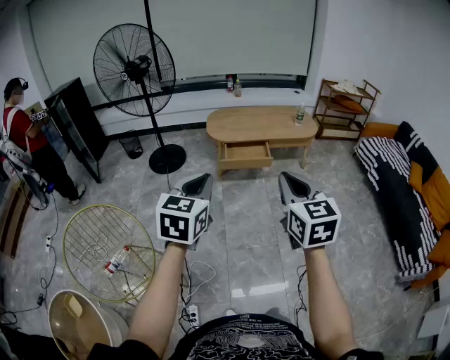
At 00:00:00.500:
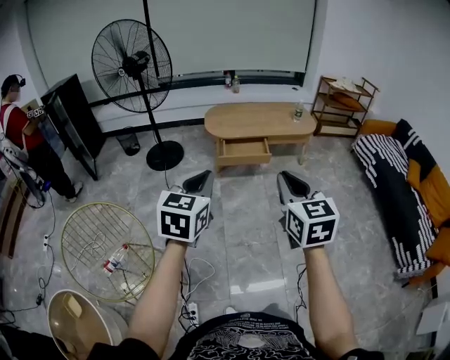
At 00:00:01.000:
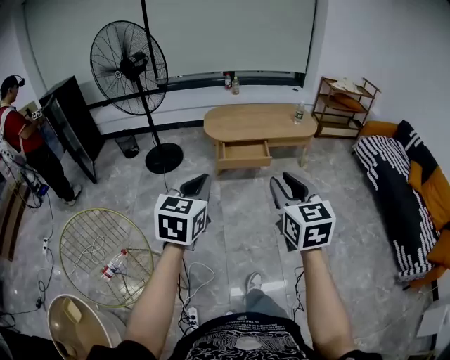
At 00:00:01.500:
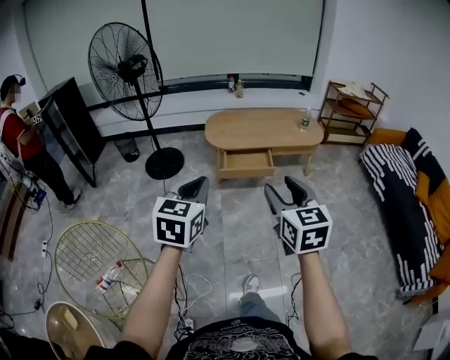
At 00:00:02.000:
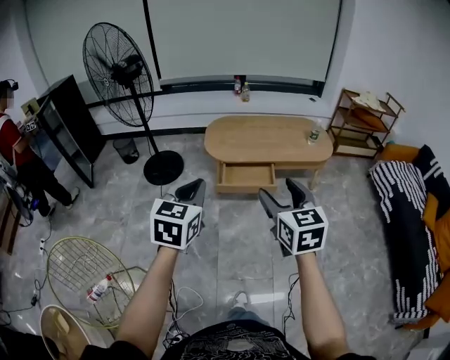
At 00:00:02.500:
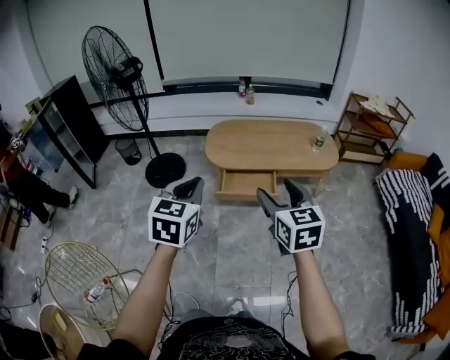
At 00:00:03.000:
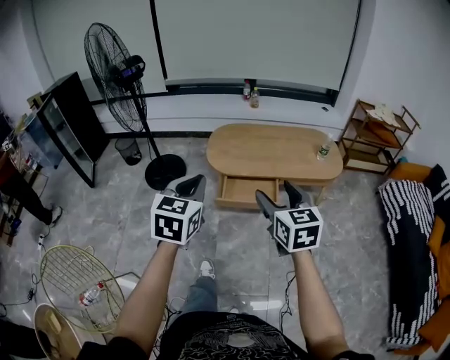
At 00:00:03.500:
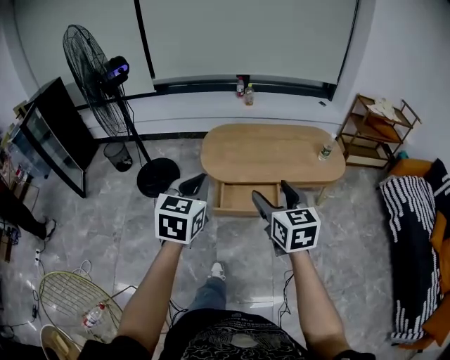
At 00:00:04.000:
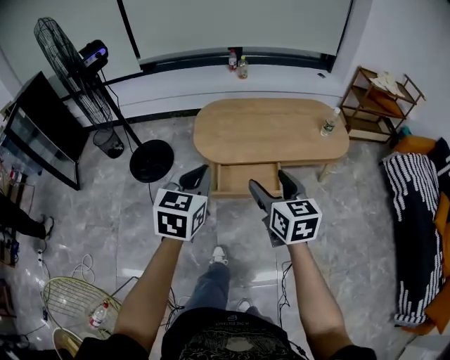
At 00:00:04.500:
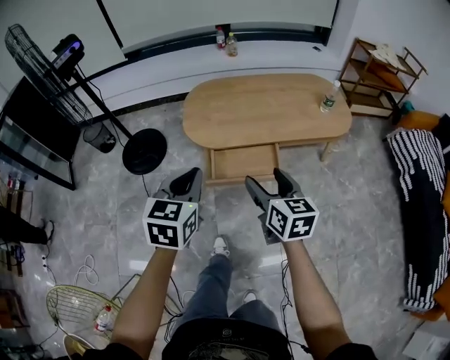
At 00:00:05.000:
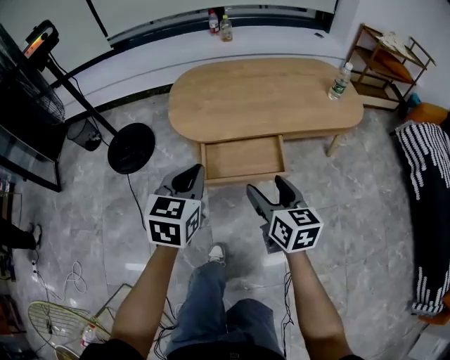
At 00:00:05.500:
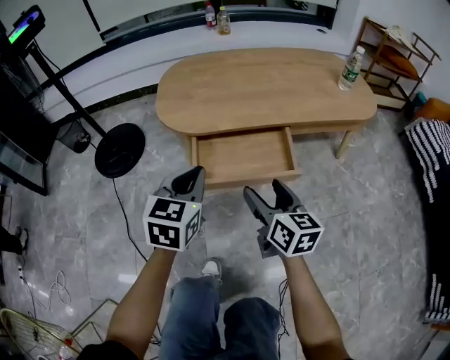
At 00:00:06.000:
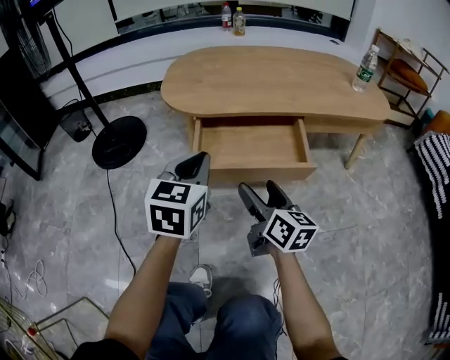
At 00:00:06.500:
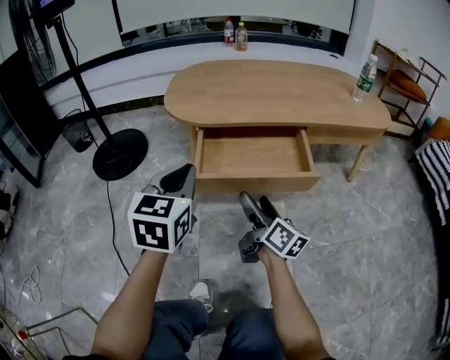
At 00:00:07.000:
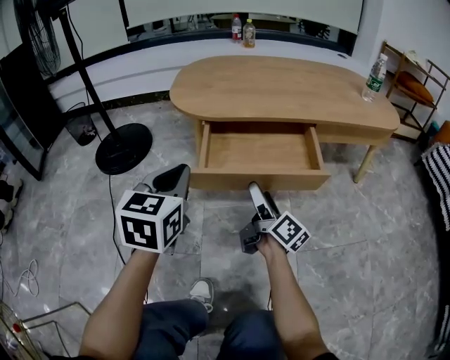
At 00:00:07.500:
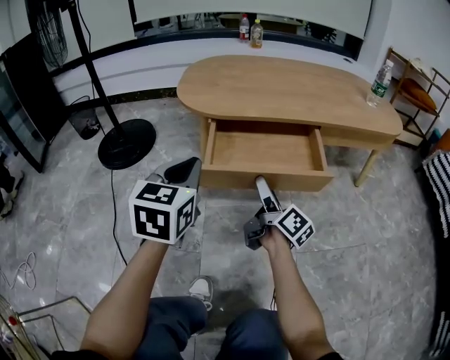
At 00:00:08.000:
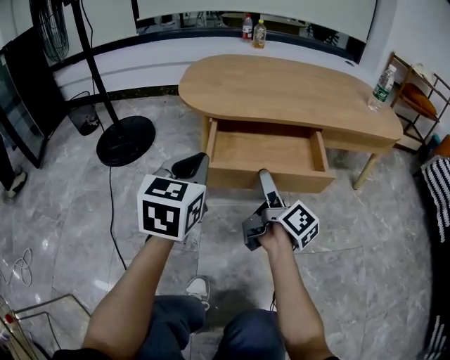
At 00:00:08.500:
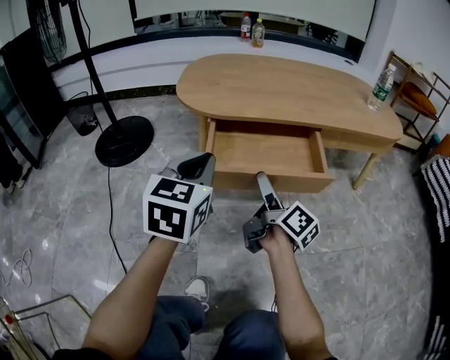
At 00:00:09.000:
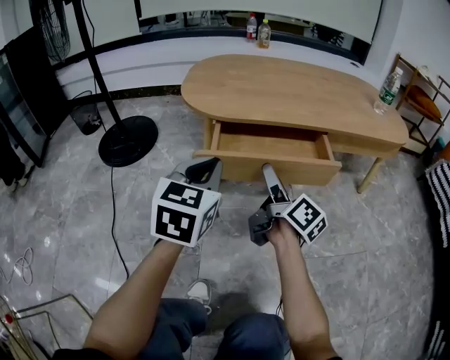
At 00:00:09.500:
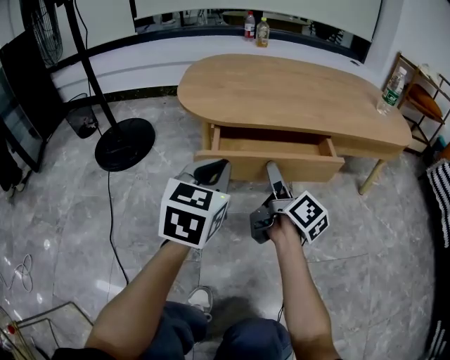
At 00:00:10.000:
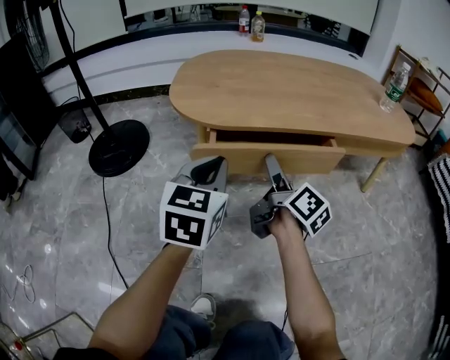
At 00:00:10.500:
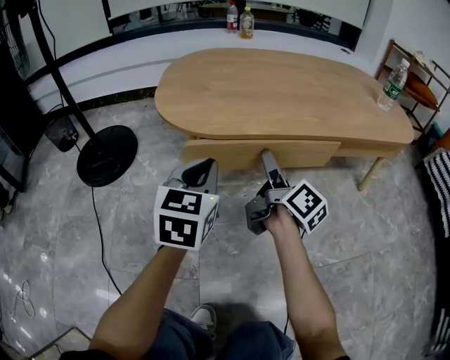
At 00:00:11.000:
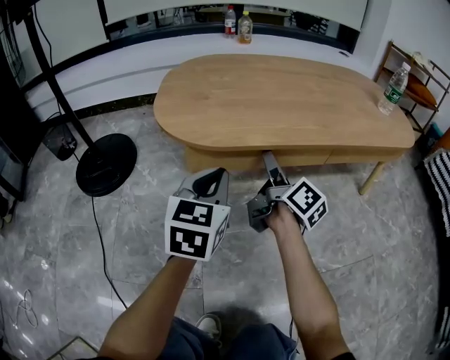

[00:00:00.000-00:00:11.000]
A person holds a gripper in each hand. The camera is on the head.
00:00:00.000 to 00:00:02.000: The grippers both shift forward by roughly 25 cm. The right gripper opens up.
00:00:02.000 to 00:00:03.500: The two grippers go approximately 25 cm forward.
00:00:03.500 to 00:00:05.500: The two grippers go some 40 cm downward. The right gripper swivels about 20 degrees.
00:00:05.500 to 00:00:07.500: The right gripper travels downward and forward by about 20 cm, and turns by some 40 degrees, while the left gripper moves downward and to the left, some 10 cm.
00:00:07.500 to 00:00:09.000: The right gripper moves upward, some 5 cm.
00:00:09.000 to 00:00:11.000: The left gripper heads forward and downward, covering about 15 cm. The right gripper travels forward by approximately 15 cm.

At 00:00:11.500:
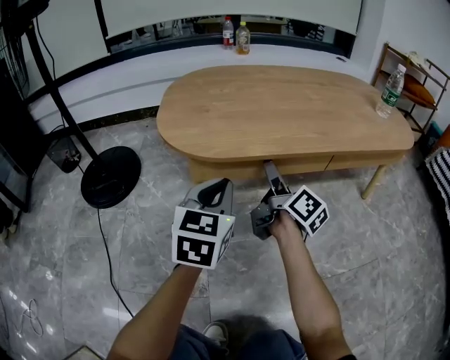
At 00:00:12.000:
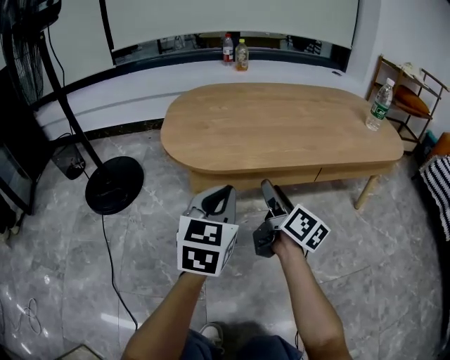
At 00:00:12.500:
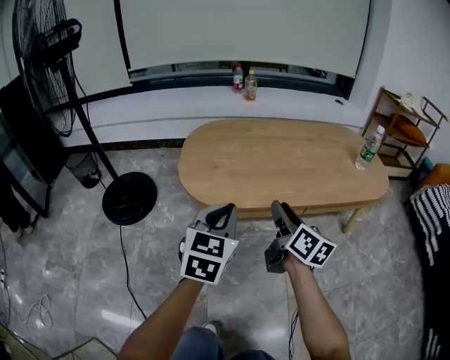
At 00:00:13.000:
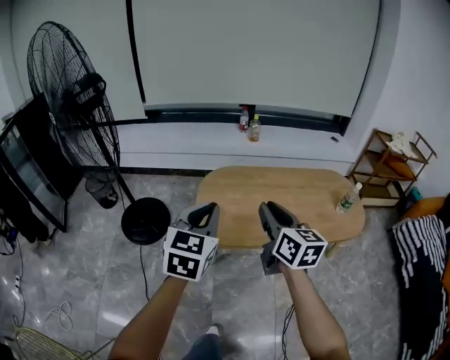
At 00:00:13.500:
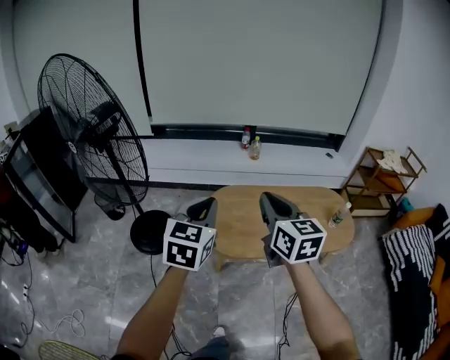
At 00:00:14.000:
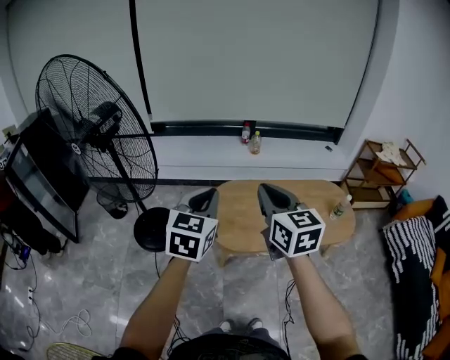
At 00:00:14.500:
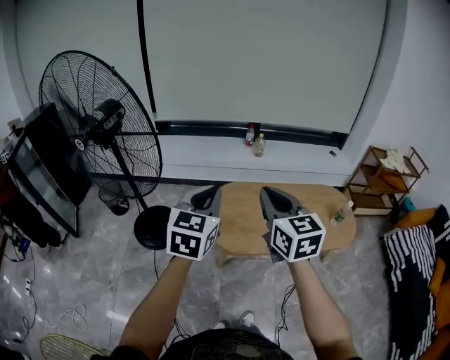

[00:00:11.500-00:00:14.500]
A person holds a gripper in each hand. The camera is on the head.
00:00:11.500 to 00:00:13.000: The grippers both shift upward by approximately 50 cm. The right gripper rotates some 40 degrees, and closes its fingers.
00:00:13.000 to 00:00:14.500: The right gripper is displaced upward and to the left by about 20 cm. The left gripper travels upward by some 15 cm.

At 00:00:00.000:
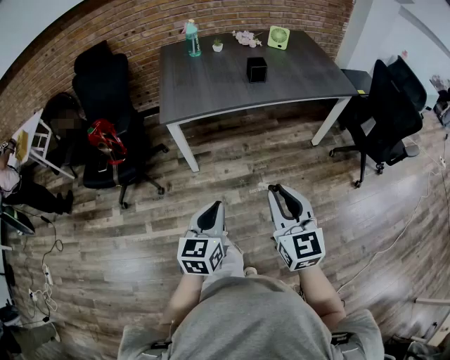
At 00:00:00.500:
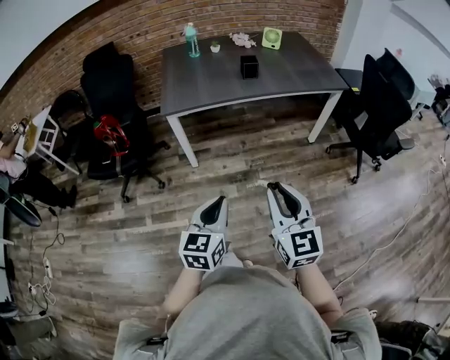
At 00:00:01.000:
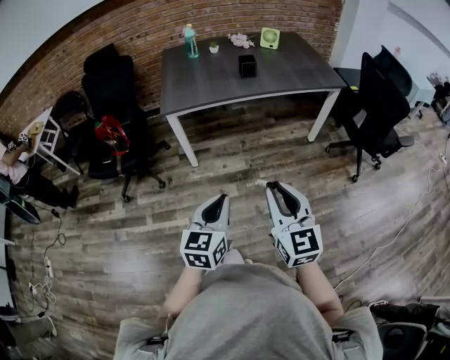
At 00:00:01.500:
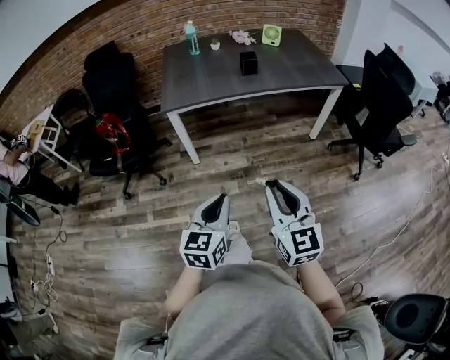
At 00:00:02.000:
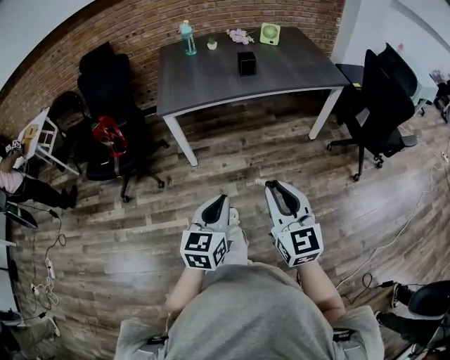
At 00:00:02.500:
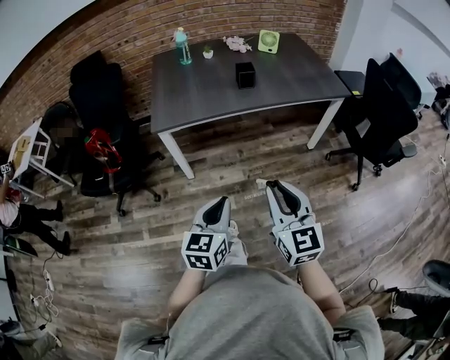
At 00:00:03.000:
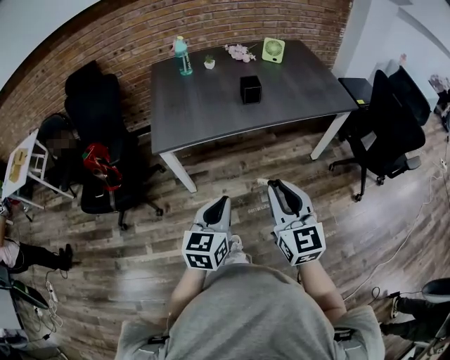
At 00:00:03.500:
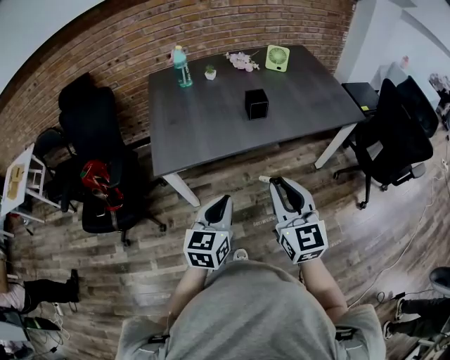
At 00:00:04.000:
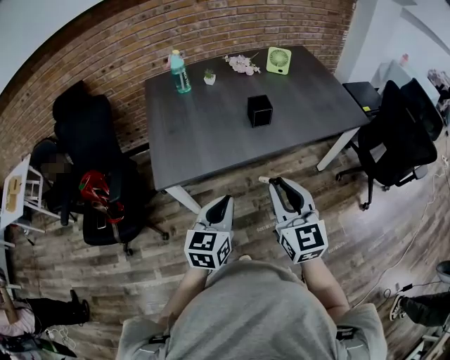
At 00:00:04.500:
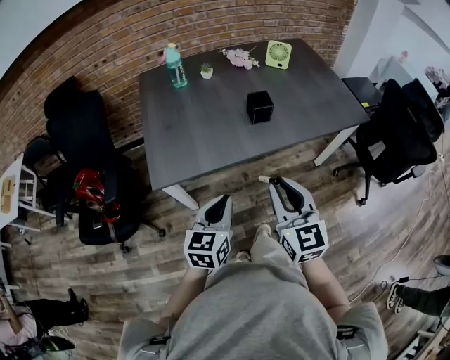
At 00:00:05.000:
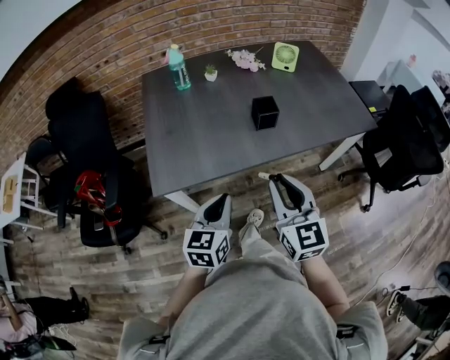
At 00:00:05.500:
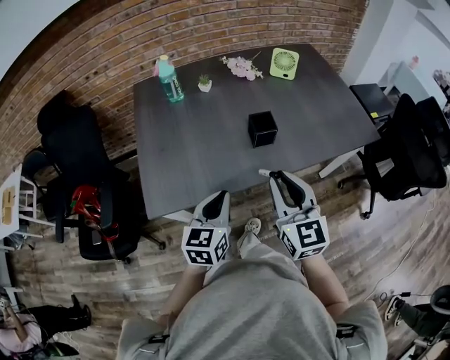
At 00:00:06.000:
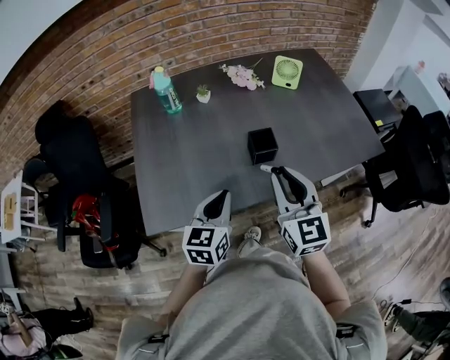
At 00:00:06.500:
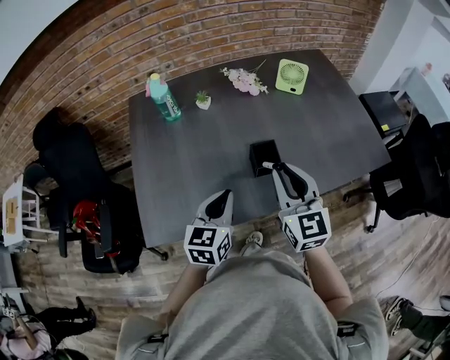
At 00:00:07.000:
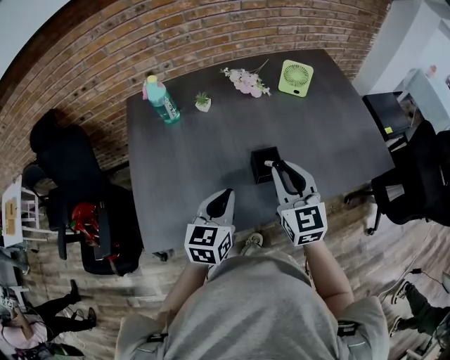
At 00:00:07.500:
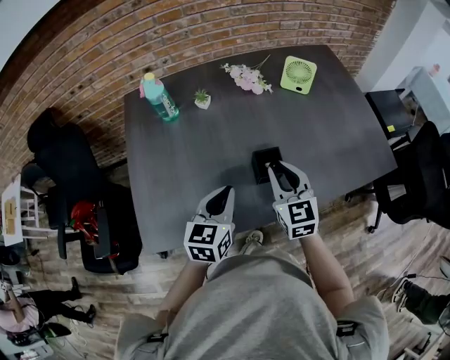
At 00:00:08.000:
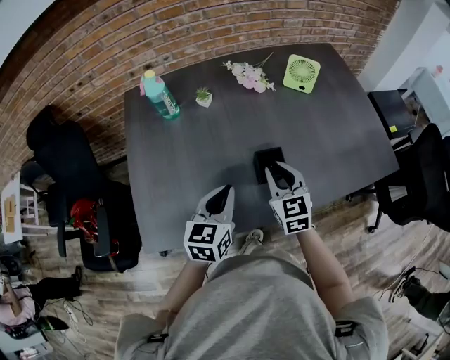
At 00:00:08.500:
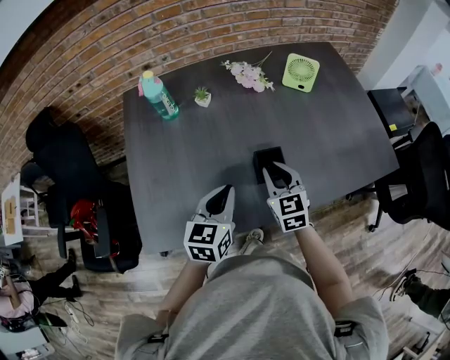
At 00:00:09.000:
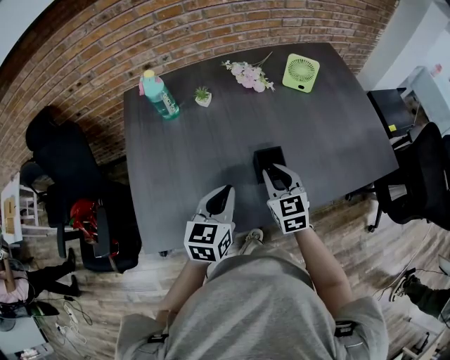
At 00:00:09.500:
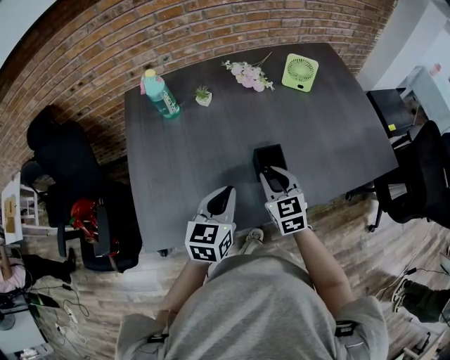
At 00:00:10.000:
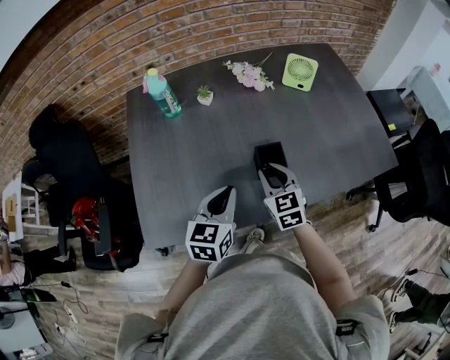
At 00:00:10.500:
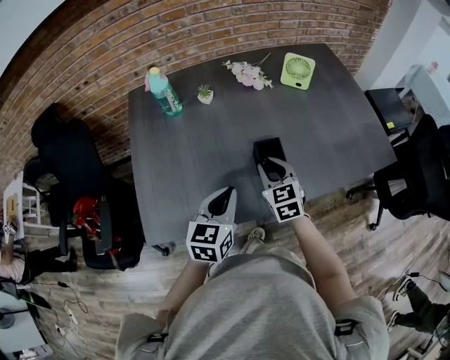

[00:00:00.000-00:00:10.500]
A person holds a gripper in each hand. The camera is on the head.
00:00:00.000 to 00:00:02.000: The right gripper is displaced backward and to the right by about 10 cm, while the left gripper shifts approximately 10 cm to the right and backward.
00:00:02.000 to 00:00:04.000: Both grippers travel together forward, some 35 cm.
00:00:04.000 to 00:00:06.500: The grippers both shift forward by about 30 cm.
00:00:06.500 to 00:00:08.500: The left gripper shifts roughly 5 cm forward. Meanwhile the right gripper moves downward and forward, some 15 cm.
00:00:08.500 to 00:00:10.500: The grippers make only small movements.

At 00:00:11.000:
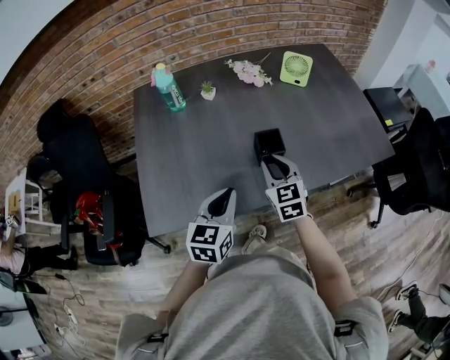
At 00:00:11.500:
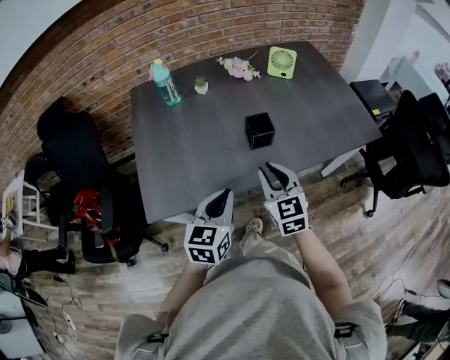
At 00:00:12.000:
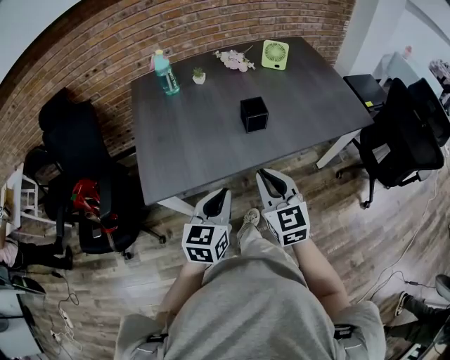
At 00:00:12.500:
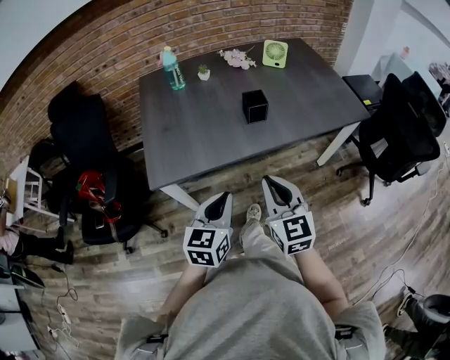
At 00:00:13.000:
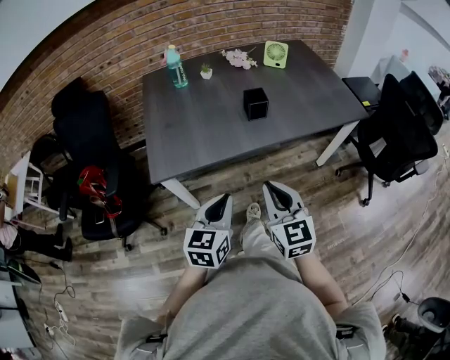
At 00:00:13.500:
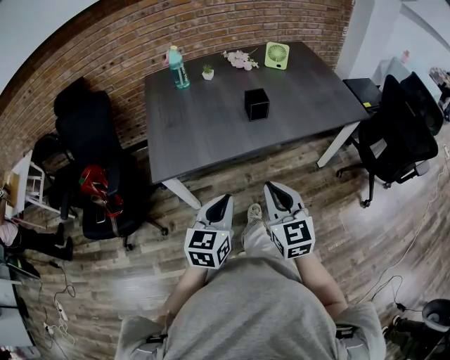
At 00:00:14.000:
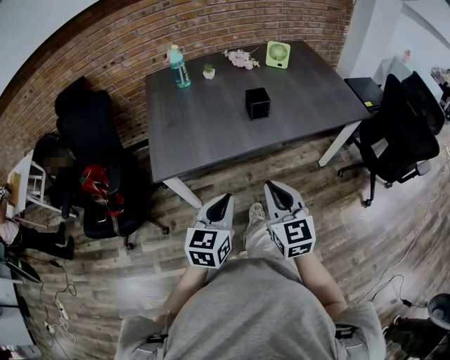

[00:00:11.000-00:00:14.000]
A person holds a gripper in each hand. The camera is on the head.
00:00:11.000 to 00:00:12.500: The two grippers go about 30 cm backward.
00:00:12.500 to 00:00:14.000: There are only small adjustments of the grippers.
